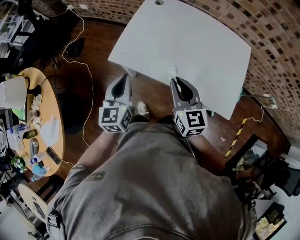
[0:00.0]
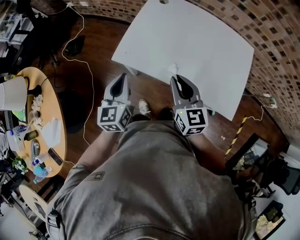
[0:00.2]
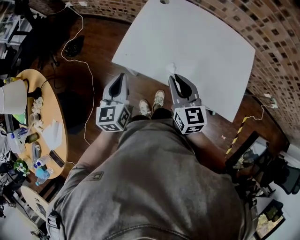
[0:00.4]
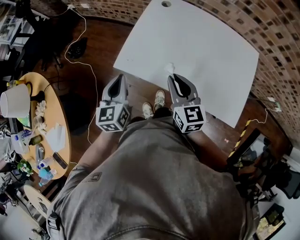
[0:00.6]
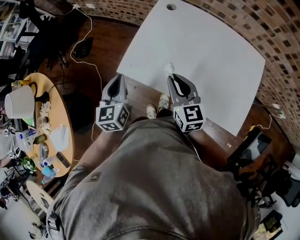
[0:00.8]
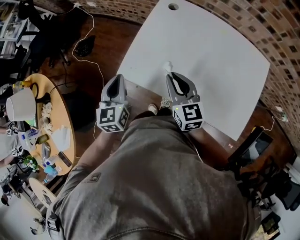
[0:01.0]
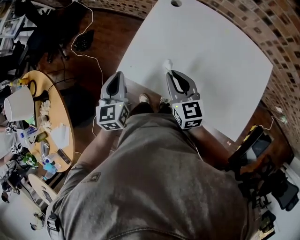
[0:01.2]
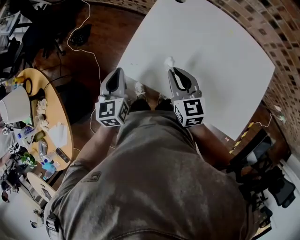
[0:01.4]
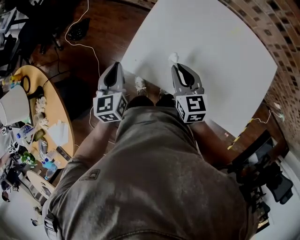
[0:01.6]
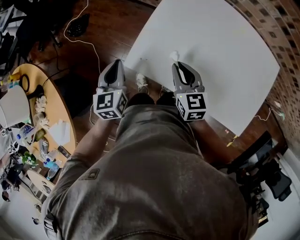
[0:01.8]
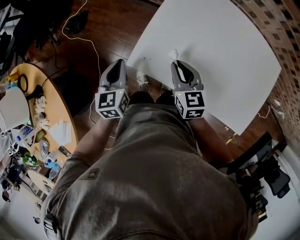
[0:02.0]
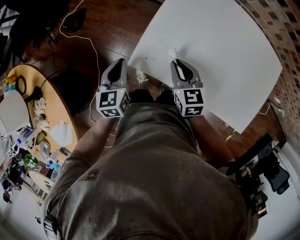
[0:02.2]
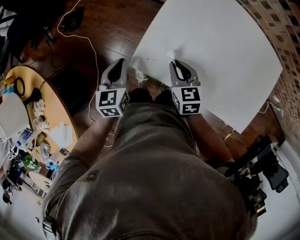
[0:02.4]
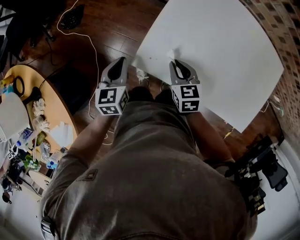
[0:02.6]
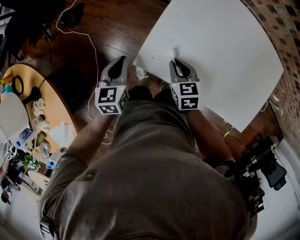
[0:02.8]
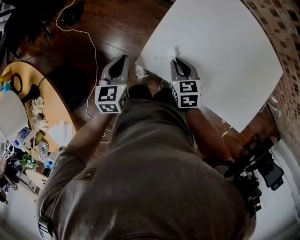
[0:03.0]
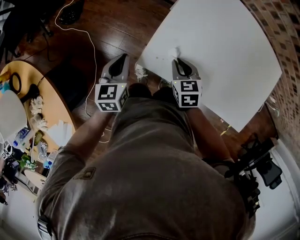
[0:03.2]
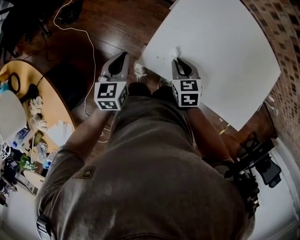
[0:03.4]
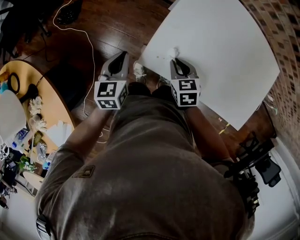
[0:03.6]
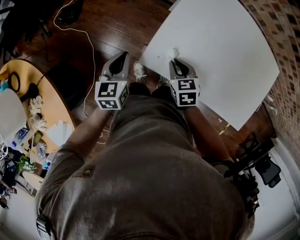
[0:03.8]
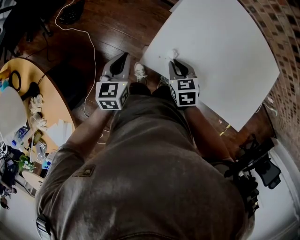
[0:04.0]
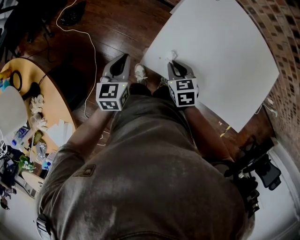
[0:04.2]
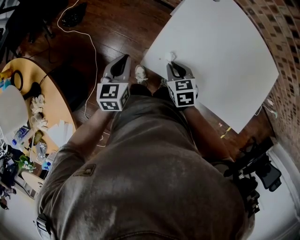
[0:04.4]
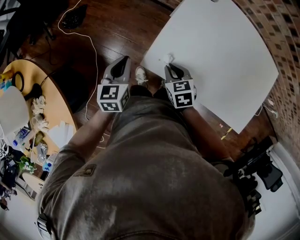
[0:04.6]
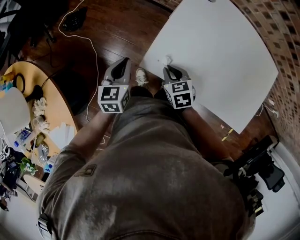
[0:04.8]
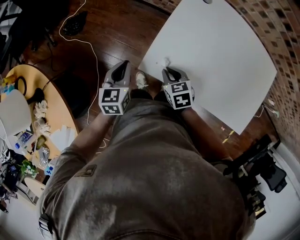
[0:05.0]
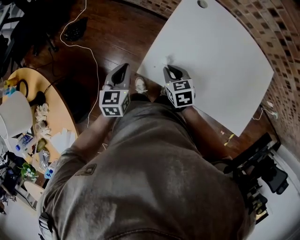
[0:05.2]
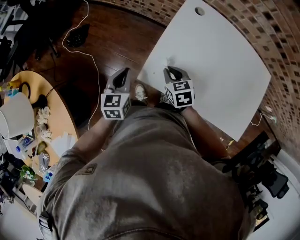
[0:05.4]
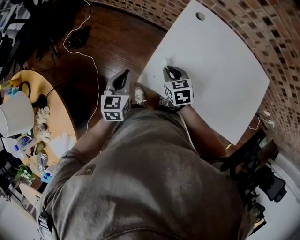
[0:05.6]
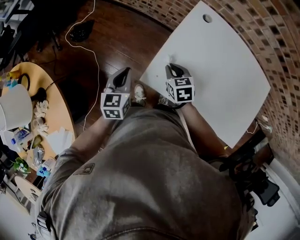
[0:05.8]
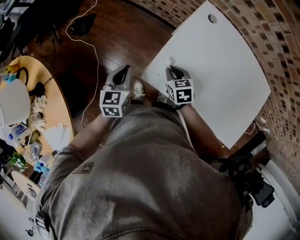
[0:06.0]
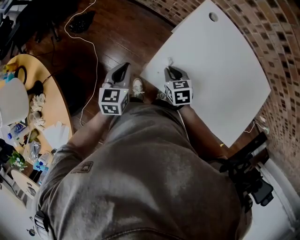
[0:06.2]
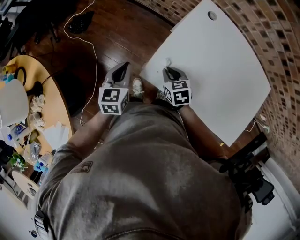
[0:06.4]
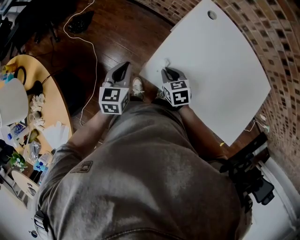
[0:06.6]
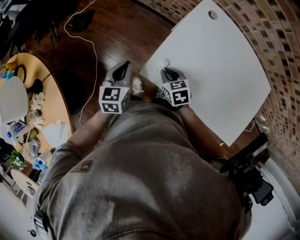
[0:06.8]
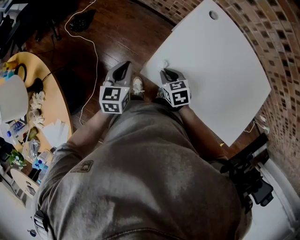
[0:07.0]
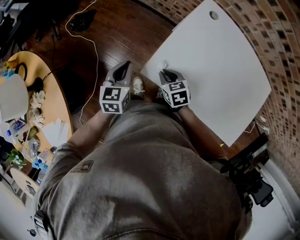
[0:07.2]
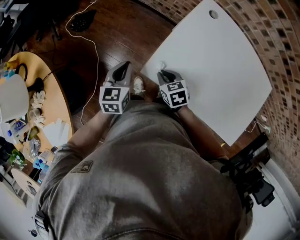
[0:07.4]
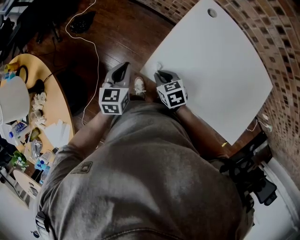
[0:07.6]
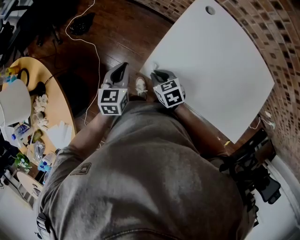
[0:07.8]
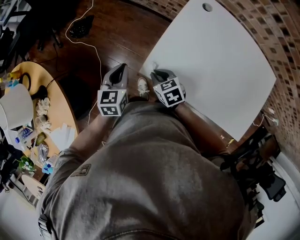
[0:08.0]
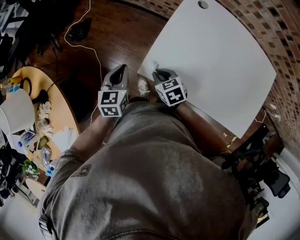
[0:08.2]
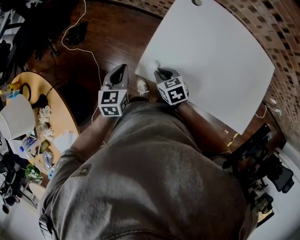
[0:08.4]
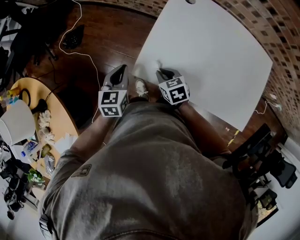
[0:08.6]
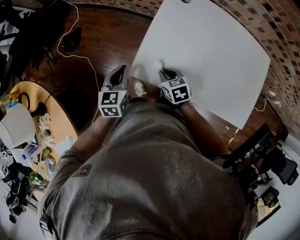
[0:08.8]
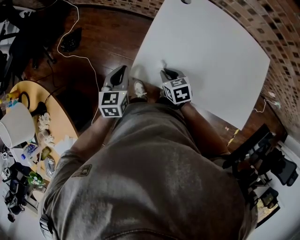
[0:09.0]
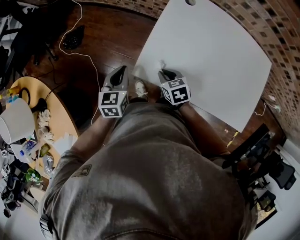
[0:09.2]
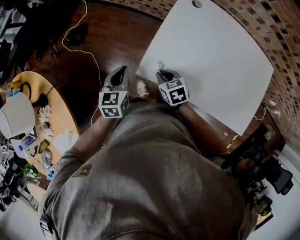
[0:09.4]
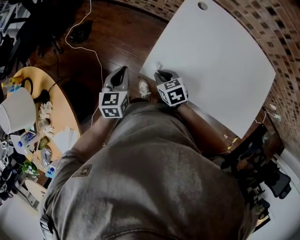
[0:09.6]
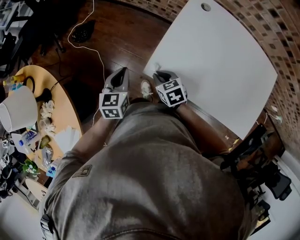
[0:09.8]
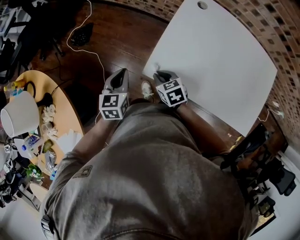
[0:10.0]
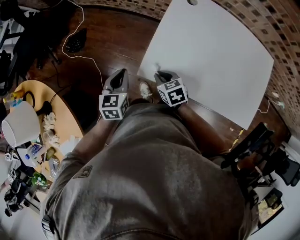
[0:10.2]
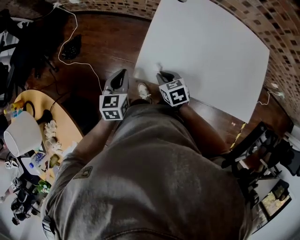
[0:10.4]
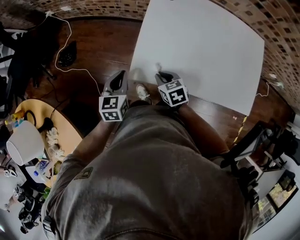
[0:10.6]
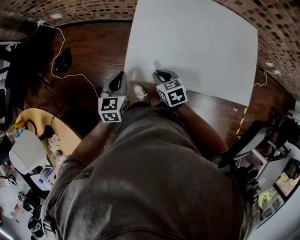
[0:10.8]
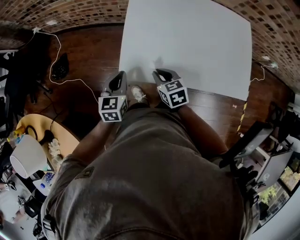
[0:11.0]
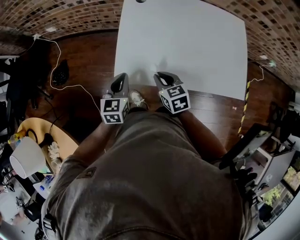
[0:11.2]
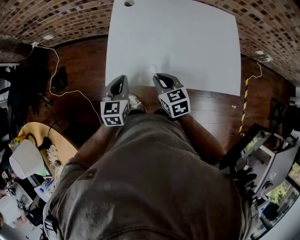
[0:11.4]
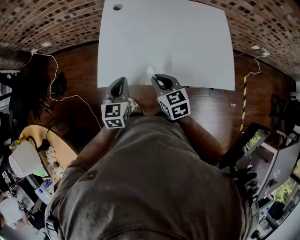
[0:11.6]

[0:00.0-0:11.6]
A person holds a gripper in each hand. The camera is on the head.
0.0 to 1.4 s: The left gripper travels forward, downward and to the left by some 15 cm; the right gripper heads forward and downward, covering about 20 cm.
1.4 to 2.8 s: Both grippers travel together downward and to the left, approximately 15 cm. The right gripper turns by roughly 20 degrees.
2.8 to 4.4 s: The grippers stay close to where they were, moving slightly.
4.4 to 5.8 s: The right gripper moves forward, approximately 5 cm.
5.8 to 7.2 s: The right gripper goes some 5 cm backward.
7.2 to 8.8 s: The right gripper shifts by about 5 cm.
8.8 to 10.2 s: The right gripper is displaced to the left by about 5 cm.
10.2 to 11.6 s: The right gripper heads to the right, upward and backward, covering approximately 25 cm, and swivels approximately 30 degrees, while the left gripper goes roughly 20 cm to the right, and changes its angle by some 20 degrees.

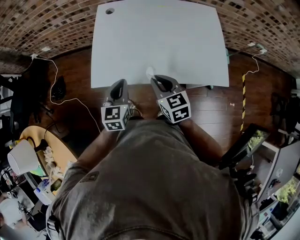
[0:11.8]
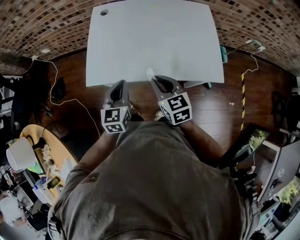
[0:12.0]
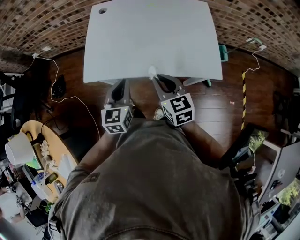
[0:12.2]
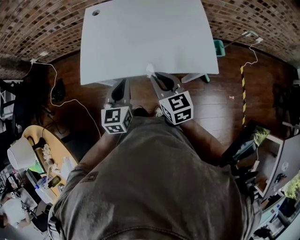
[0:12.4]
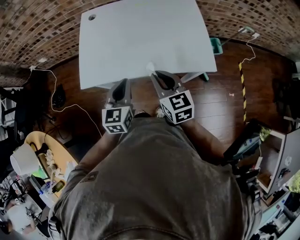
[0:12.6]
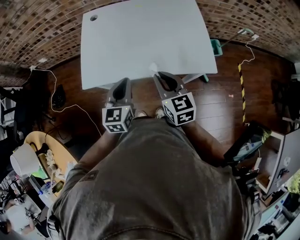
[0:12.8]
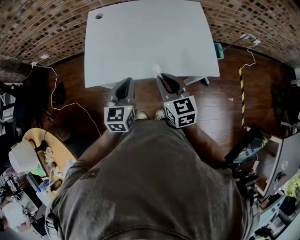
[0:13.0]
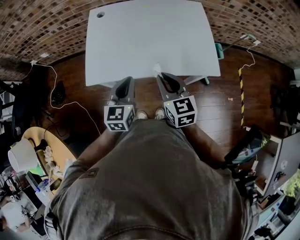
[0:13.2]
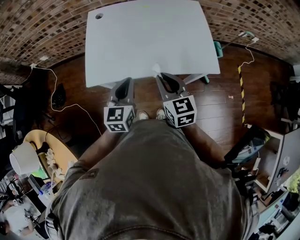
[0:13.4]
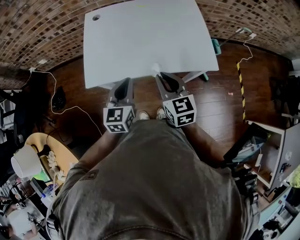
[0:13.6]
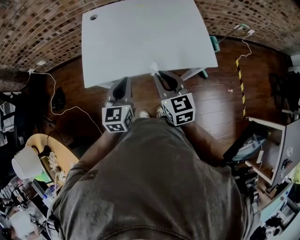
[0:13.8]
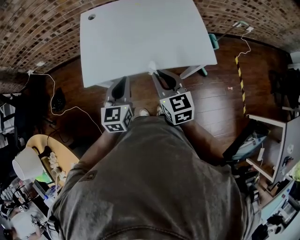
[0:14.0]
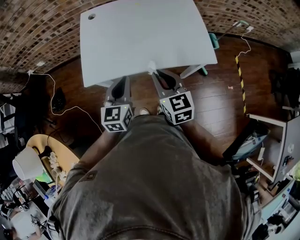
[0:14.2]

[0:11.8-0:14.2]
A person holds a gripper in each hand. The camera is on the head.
11.8 to 13.0 s: The grippers both shift to the right and upward by approximately 10 cm.
13.0 to 14.2 s: There are only small adjustments of the grippers.

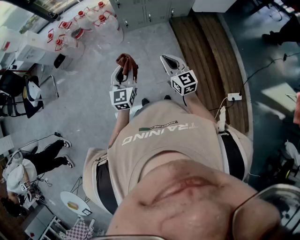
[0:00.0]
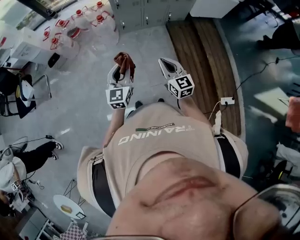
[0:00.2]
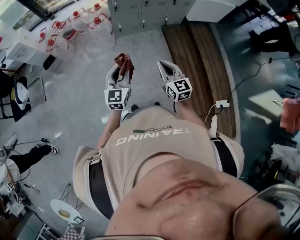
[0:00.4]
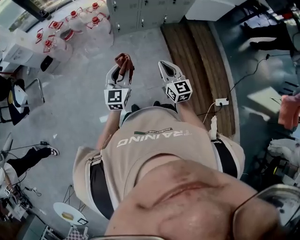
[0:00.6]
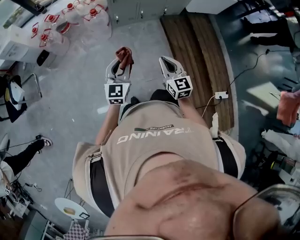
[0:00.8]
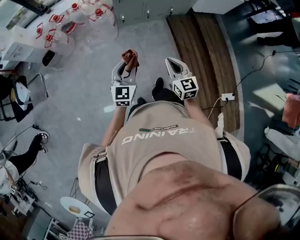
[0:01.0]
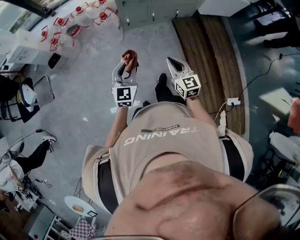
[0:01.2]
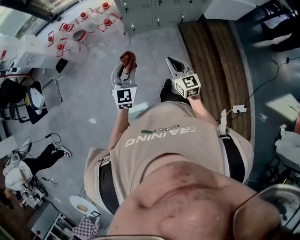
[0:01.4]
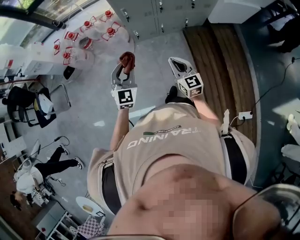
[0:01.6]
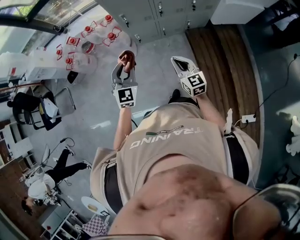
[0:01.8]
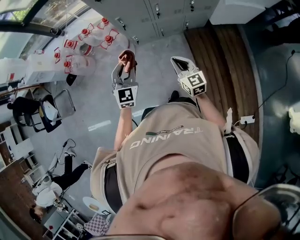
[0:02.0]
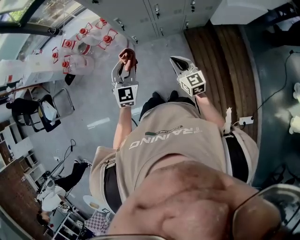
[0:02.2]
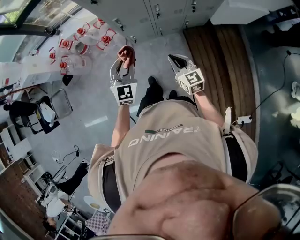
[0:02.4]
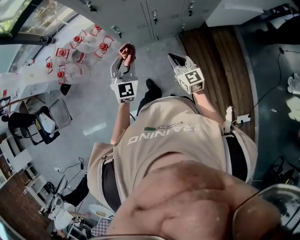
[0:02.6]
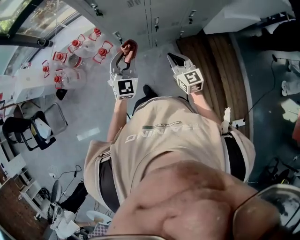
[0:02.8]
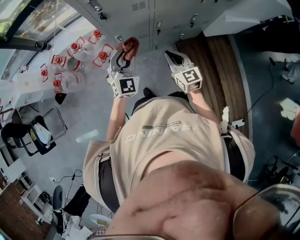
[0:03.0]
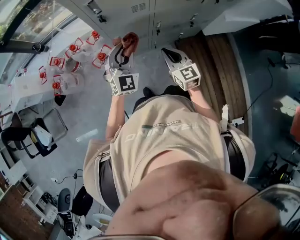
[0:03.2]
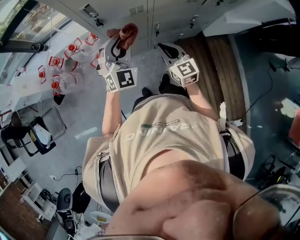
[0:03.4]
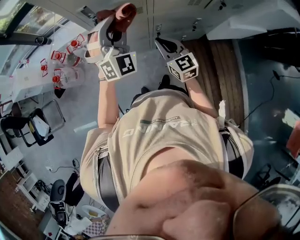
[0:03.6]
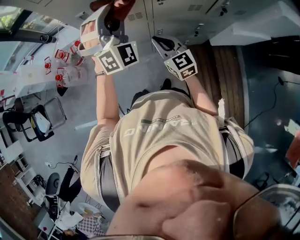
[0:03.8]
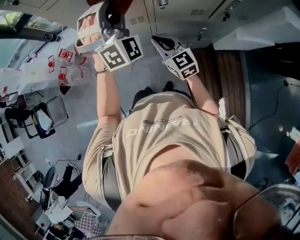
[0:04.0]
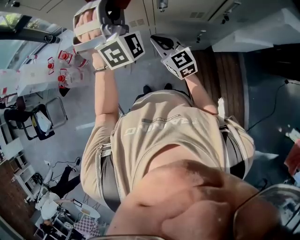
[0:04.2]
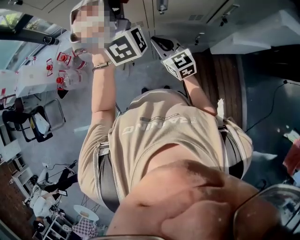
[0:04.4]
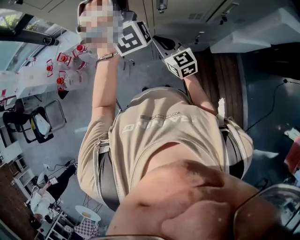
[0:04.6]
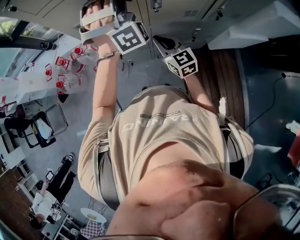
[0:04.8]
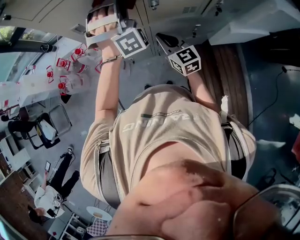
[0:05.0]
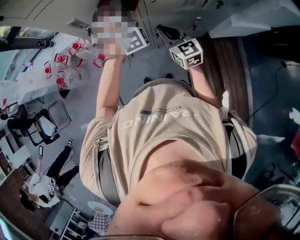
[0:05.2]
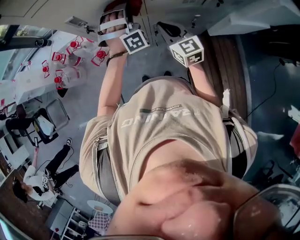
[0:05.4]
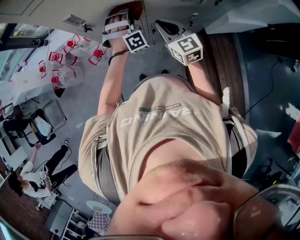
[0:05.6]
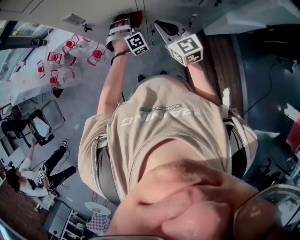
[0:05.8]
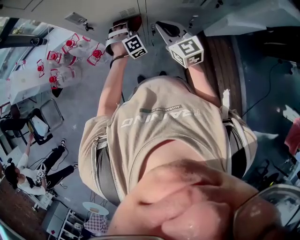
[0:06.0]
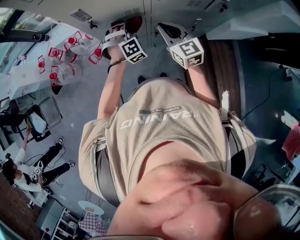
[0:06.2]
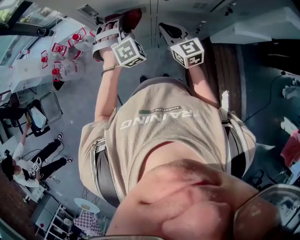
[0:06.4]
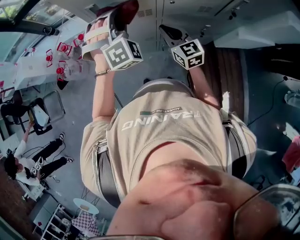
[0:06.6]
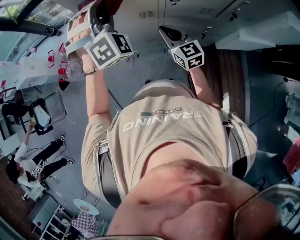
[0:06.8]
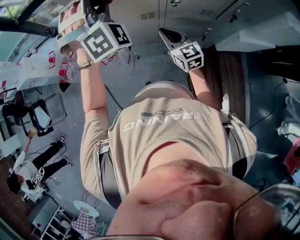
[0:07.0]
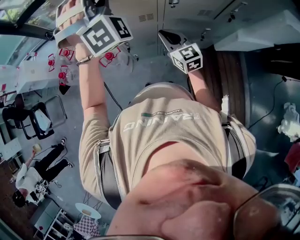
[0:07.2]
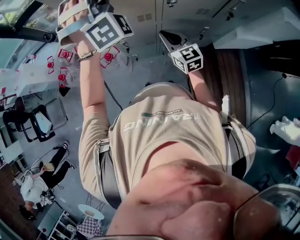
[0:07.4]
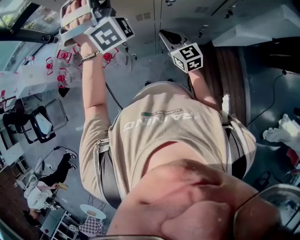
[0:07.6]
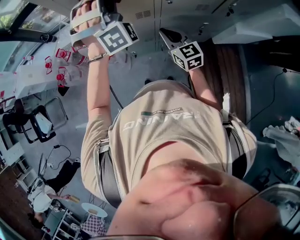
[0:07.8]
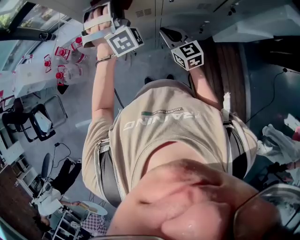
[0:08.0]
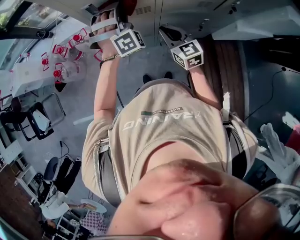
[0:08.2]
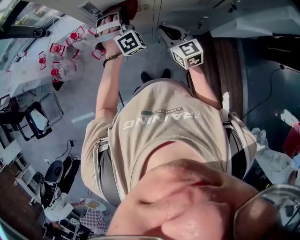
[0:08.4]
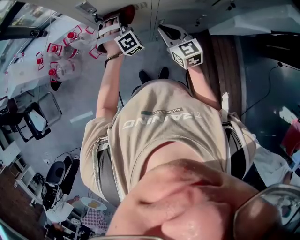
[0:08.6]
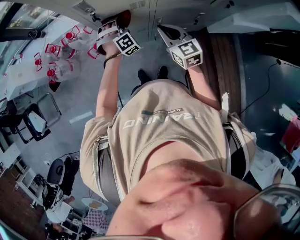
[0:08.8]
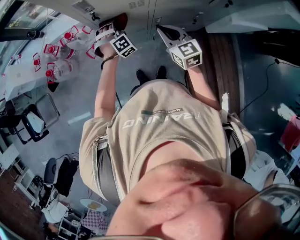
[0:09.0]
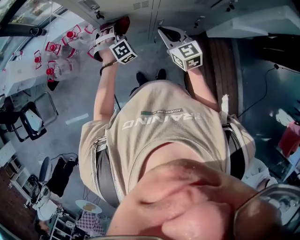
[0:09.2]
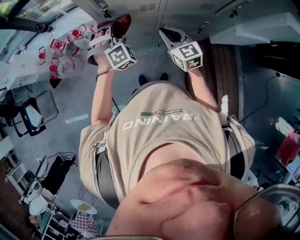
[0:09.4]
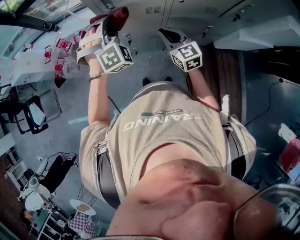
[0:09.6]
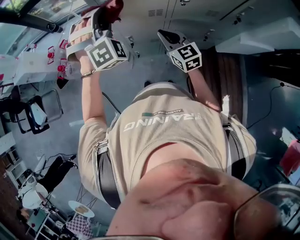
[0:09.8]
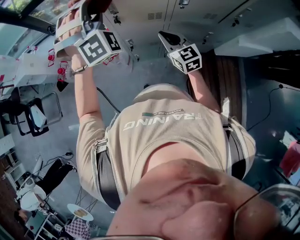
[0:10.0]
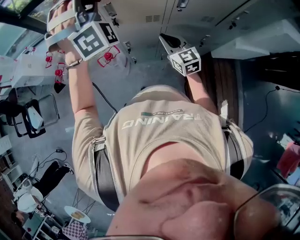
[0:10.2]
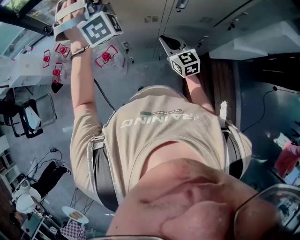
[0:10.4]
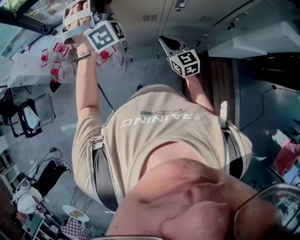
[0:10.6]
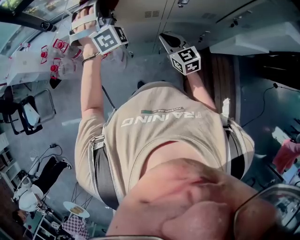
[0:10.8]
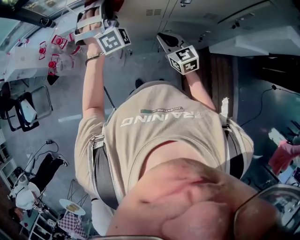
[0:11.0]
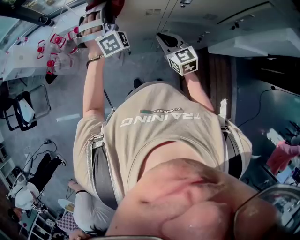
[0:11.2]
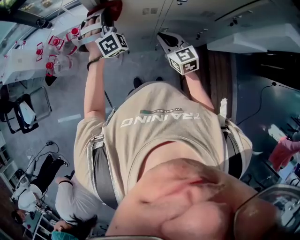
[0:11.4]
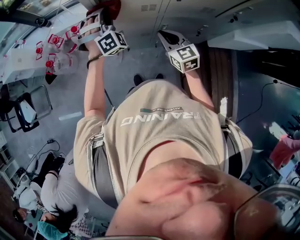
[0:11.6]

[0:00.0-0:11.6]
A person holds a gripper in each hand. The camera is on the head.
0.0 to 1.4 s: Both grippers travel together forward, approximately 20 cm.
1.4 to 2.8 s: Both grippers move forward, about 30 cm.
2.8 to 4.4 s: The right gripper goes some 20 cm forward; the left gripper is displaced upward, forward and to the right by about 40 cm, and twists some 60 degrees clockwise, seen from behind.
4.4 to 5.8 s: The left gripper shifts roughly 40 cm downward, and tips its fingers downward by about 40 degrees.
5.8 to 7.2 s: The right gripper travels to the left by about 5 cm. Meanwhile the left gripper shifts approximately 40 cm upward, and tilts its fingers roughly 30 degrees upward.
7.2 to 8.8 s: The left gripper goes approximately 40 cm downward, and points its fingers about 30 degrees further downward.
8.8 to 10.2 s: The left gripper is displaced upward by approximately 40 cm, and points its fingers roughly 40 degrees further upward. The right gripper ends up about 5 cm from where it was.
10.2 to 11.6 s: The left gripper travels downward by approximately 25 cm.
